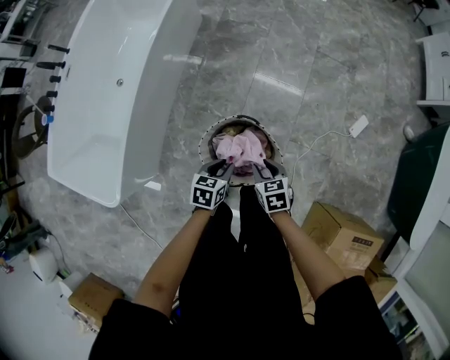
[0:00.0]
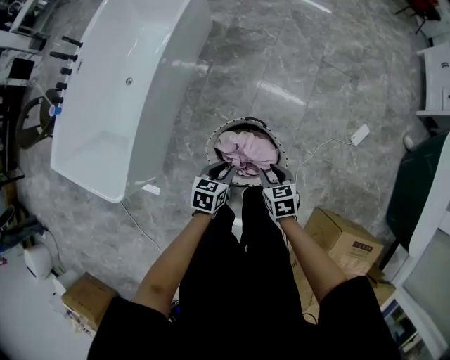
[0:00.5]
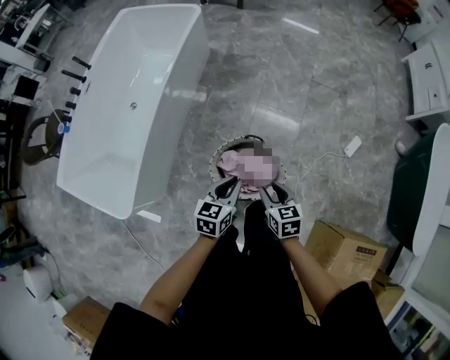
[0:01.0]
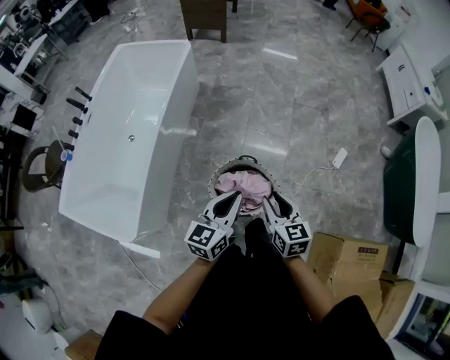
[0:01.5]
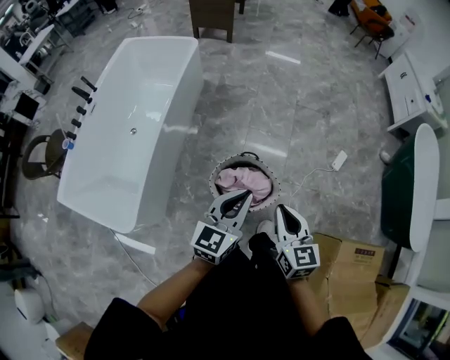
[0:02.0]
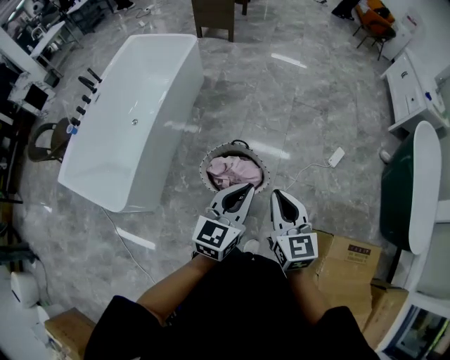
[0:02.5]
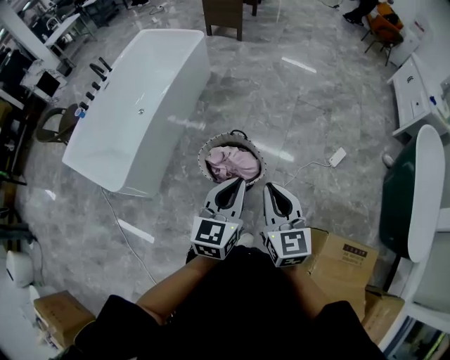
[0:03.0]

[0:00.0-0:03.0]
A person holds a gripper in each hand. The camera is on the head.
0:00.0 to 0:01.5: The right gripper travels upward and backward by about 30 cm, and turns by approximately 30 degrees. Meanwhile the left gripper heads upward, covering approximately 30 cm, tips its fingers upward by about 40 degrees, and closes.
0:01.5 to 0:03.0: The left gripper shifts about 25 cm to the right, backward and upward; the right gripper moves backward, to the right and upward, approximately 25 cm, and closes up.

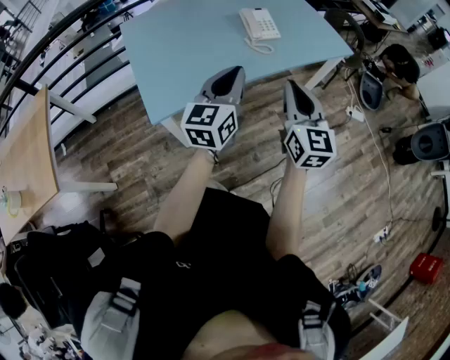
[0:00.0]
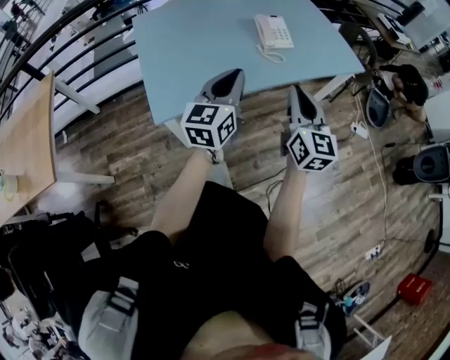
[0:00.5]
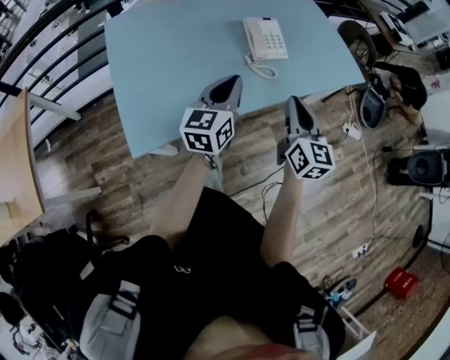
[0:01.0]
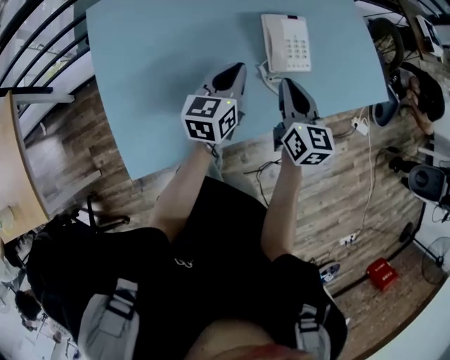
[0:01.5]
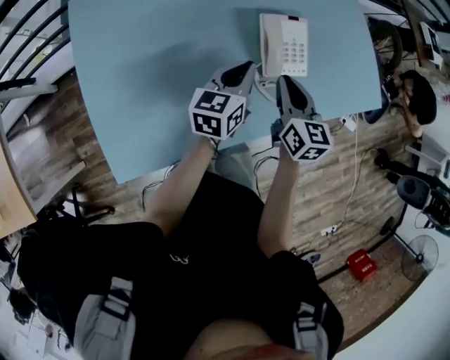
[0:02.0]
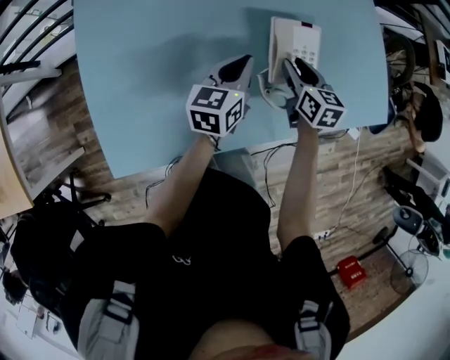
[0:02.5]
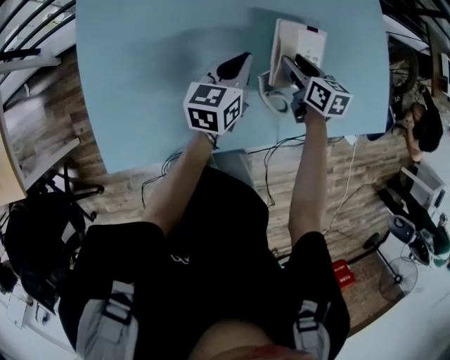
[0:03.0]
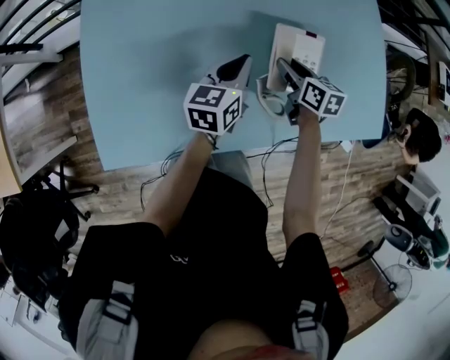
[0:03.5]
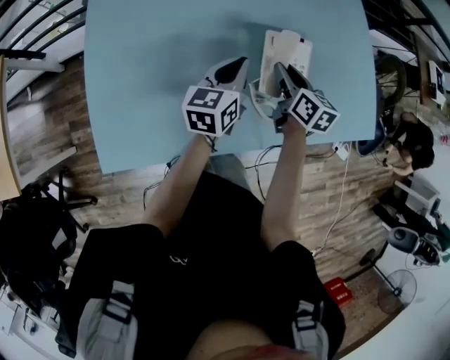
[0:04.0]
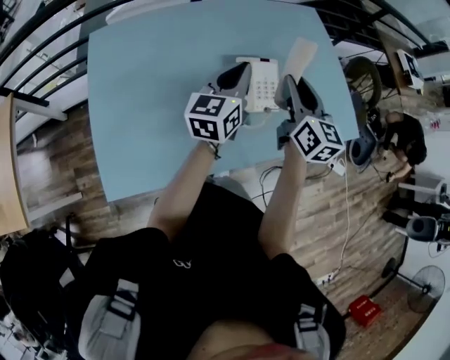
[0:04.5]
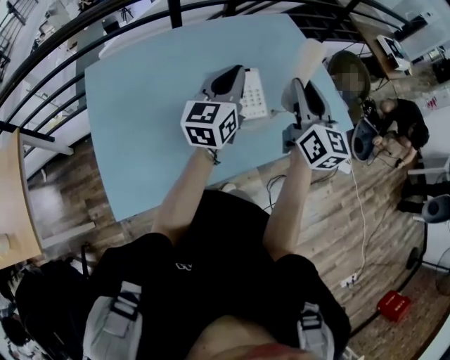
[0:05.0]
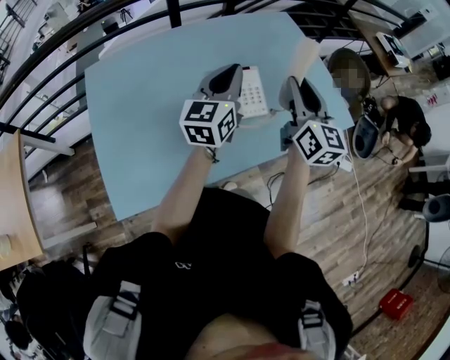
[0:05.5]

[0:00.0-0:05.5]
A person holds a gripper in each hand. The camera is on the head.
0:00.0 to 0:02.0: The two grippers travel together, forward, roughly 40 cm. Both grippers travel together downward, some 20 cm. The left gripper rotates roughly 30 degrees. Meanwhile the right gripper swivels approximately 30 degrees.
0:02.0 to 0:03.5: The right gripper shifts approximately 15 cm forward and downward, rotates approximately 30 degrees, and opens up, while the left gripper changes place by some 5 cm.
0:03.5 to 0:05.5: Both grippers travel together upward, about 25 cm. The right gripper tilts its fingers roughly 40 degrees upward, while the left gripper swivels approximately 30 degrees.

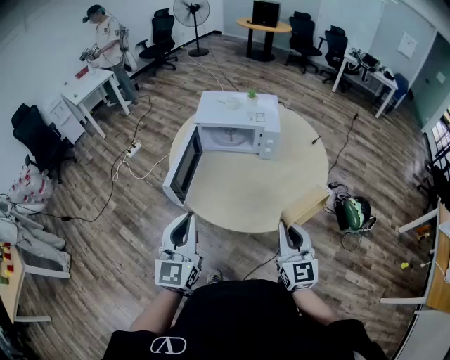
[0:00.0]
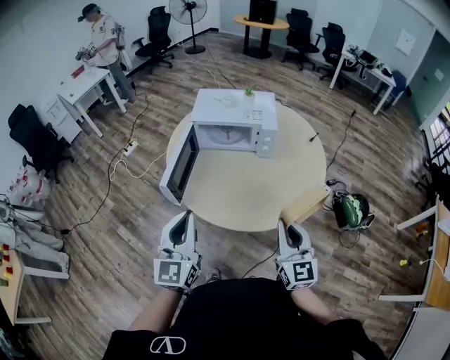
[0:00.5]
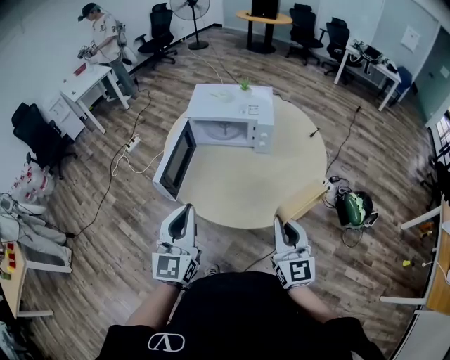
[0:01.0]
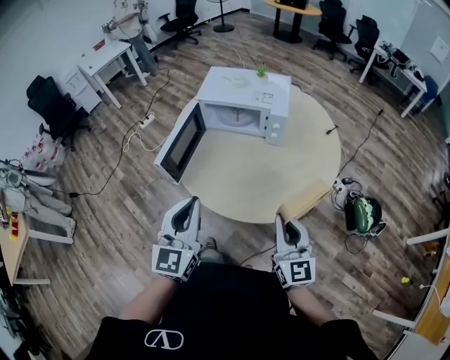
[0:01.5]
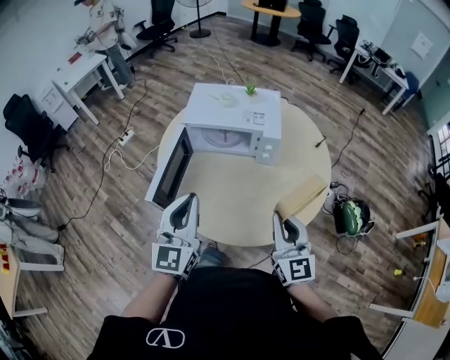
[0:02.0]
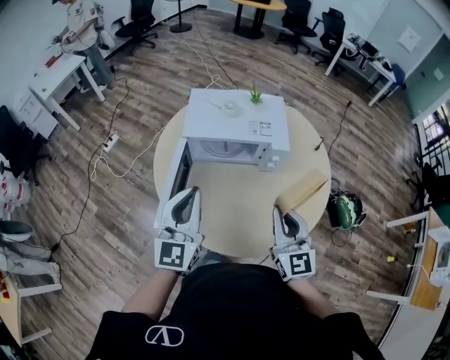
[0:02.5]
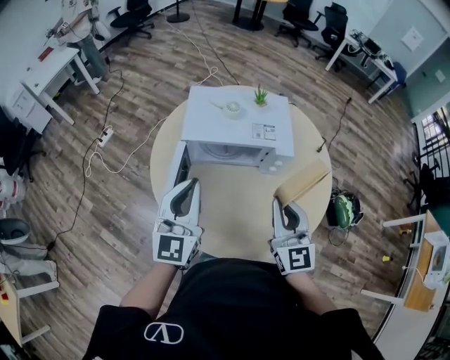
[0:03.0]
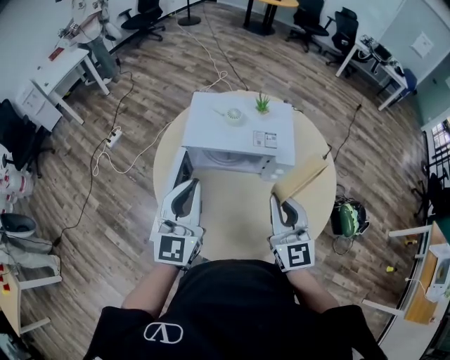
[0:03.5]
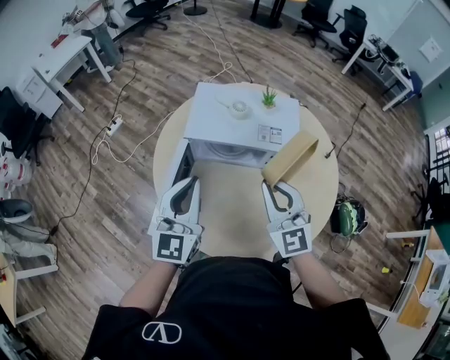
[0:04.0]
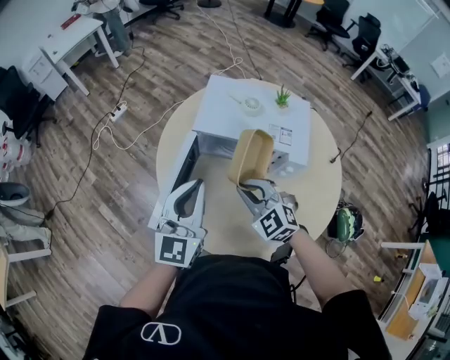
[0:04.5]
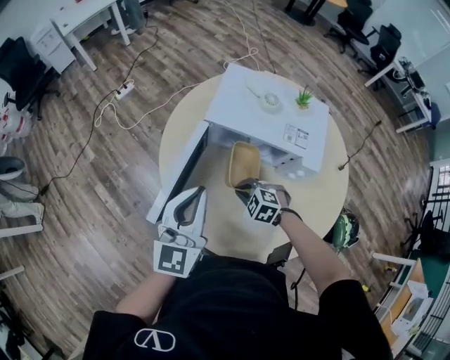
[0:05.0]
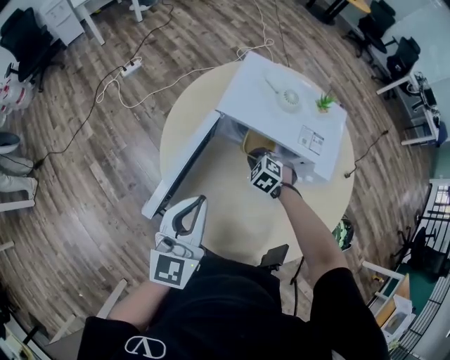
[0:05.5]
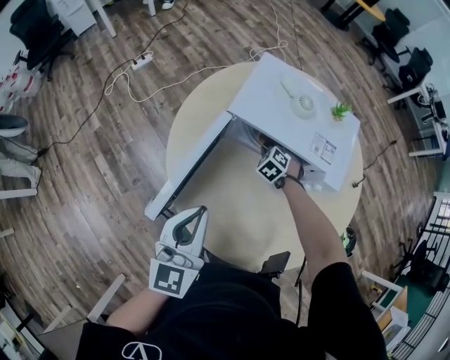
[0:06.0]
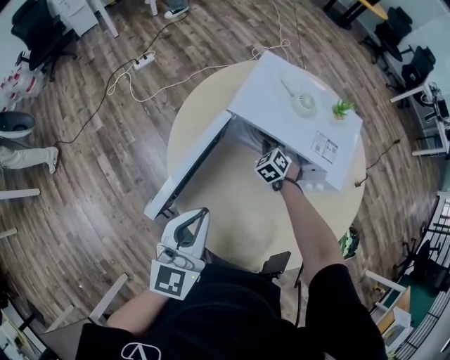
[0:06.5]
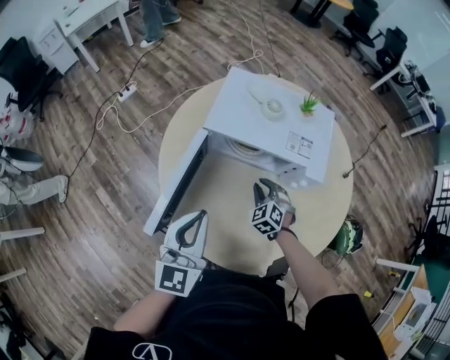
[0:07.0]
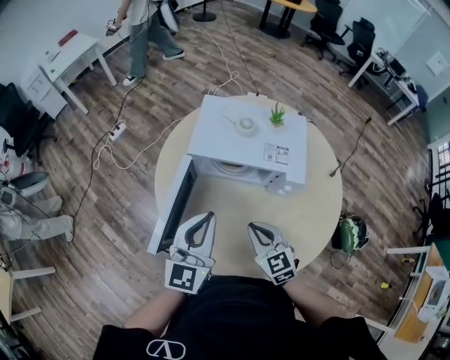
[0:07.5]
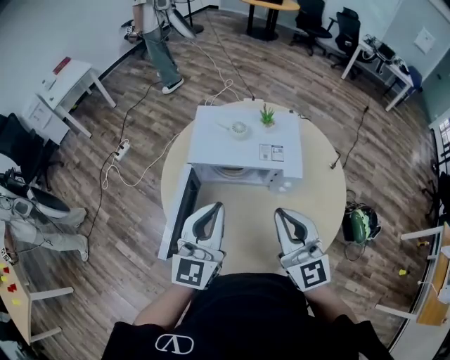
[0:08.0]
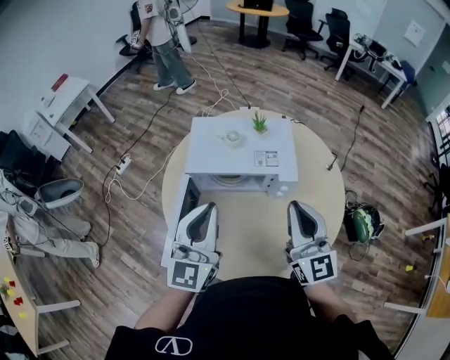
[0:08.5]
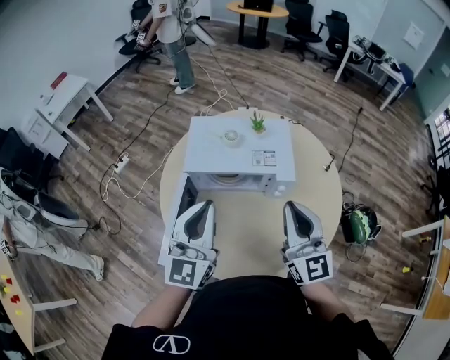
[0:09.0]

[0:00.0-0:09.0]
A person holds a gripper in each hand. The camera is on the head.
0:00.0 to 0:02.0: The grippers both shift forward by roughly 15 cm.
0:02.0 to 0:04.5: The left gripper travels forward by about 15 cm, while the right gripper moves forward, to the left and downward, roughly 30 cm, and angles its fingers downward, by about 30 degrees.
0:04.5 to 0:07.0: The right gripper shifts about 20 cm downward, and turns by approximately 30 degrees, while the left gripper heads downward, covering approximately 5 cm.
0:07.0 to 0:09.0: The right gripper travels upward by roughly 35 cm, and tips its fingers upward by some 50 degrees. Meanwhile the left gripper is displaced upward and to the right by about 15 cm, and swivels about 20 degrees.

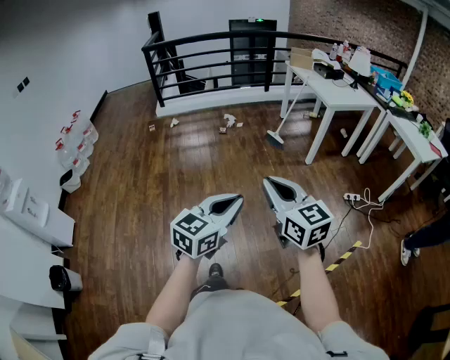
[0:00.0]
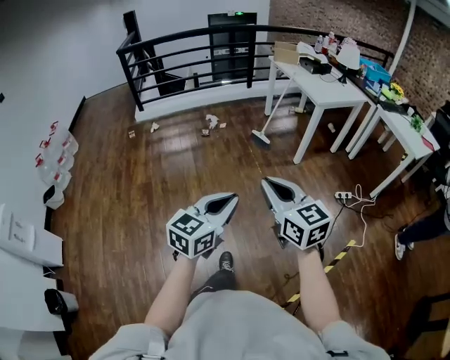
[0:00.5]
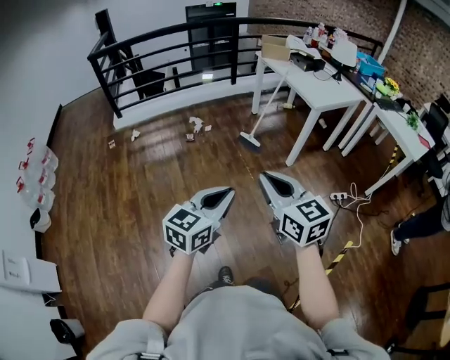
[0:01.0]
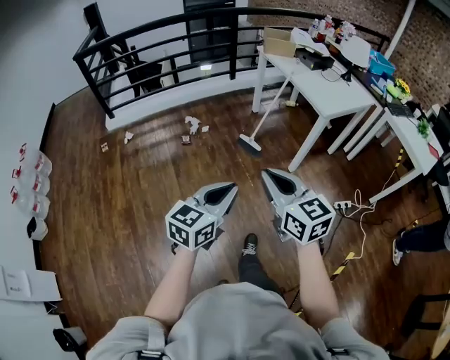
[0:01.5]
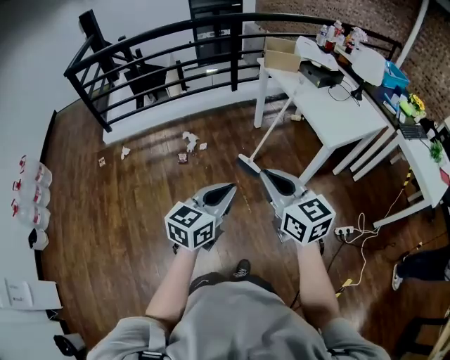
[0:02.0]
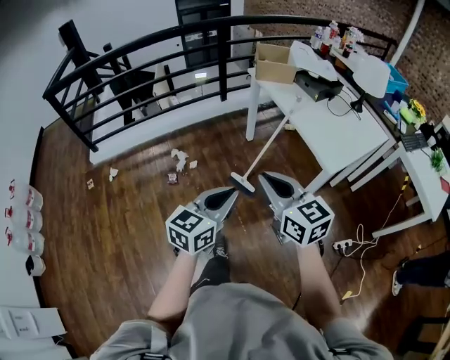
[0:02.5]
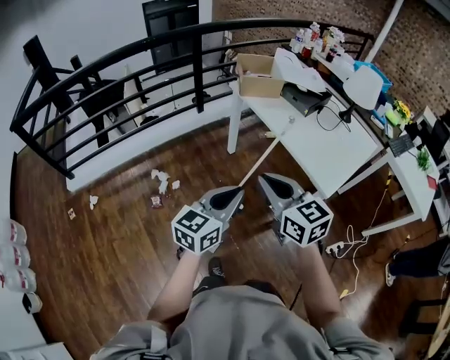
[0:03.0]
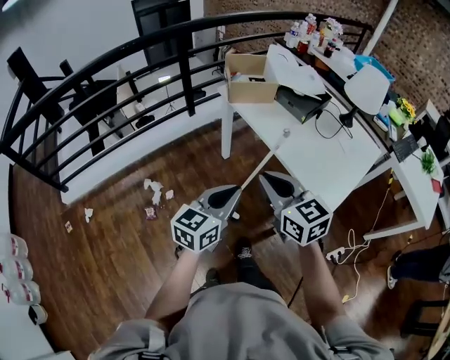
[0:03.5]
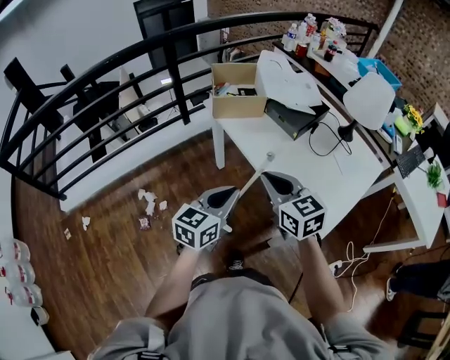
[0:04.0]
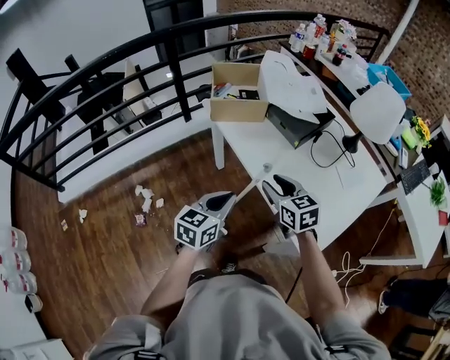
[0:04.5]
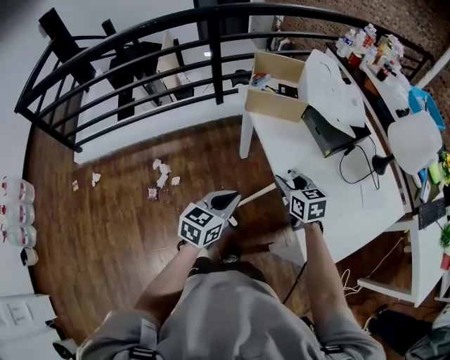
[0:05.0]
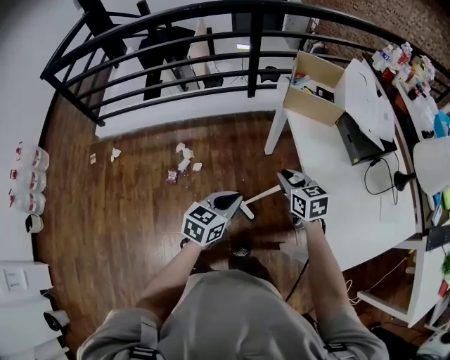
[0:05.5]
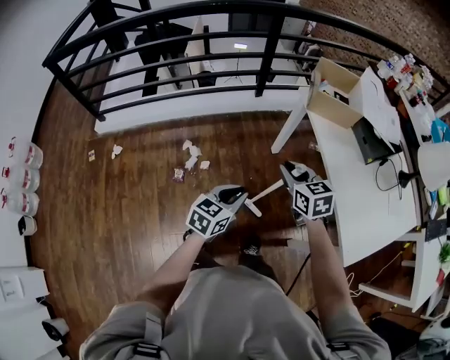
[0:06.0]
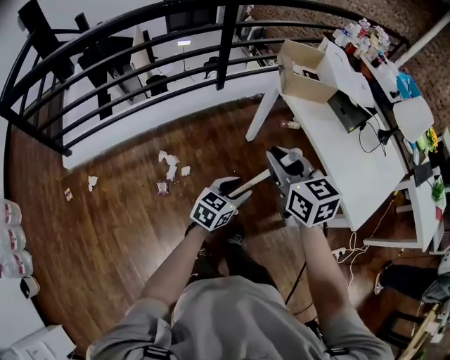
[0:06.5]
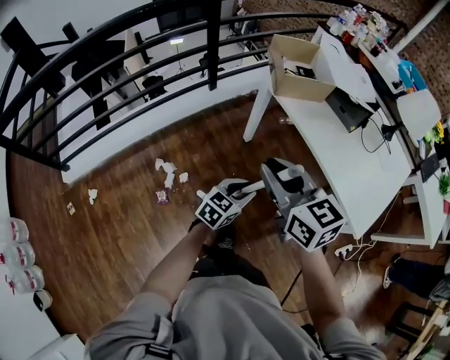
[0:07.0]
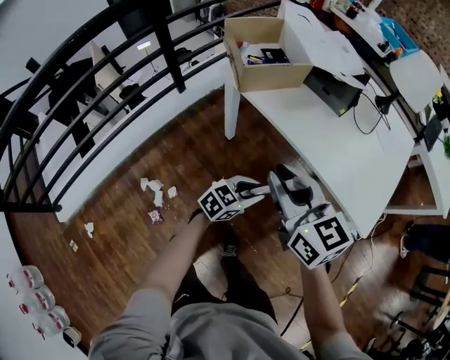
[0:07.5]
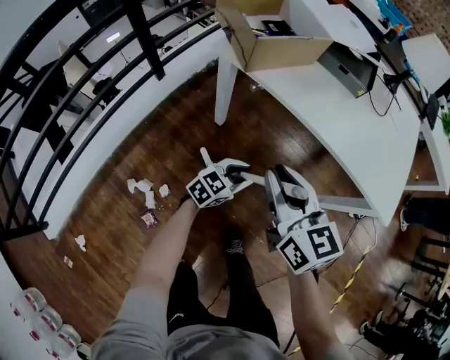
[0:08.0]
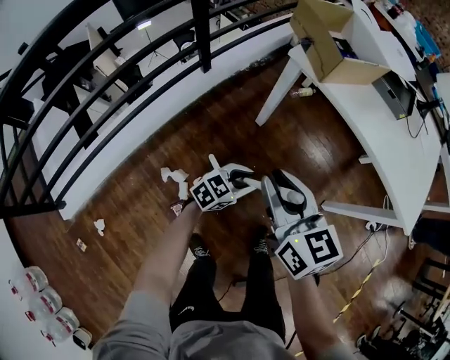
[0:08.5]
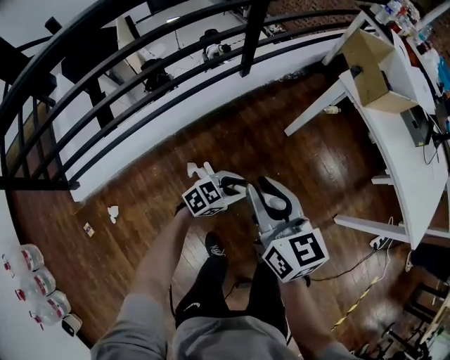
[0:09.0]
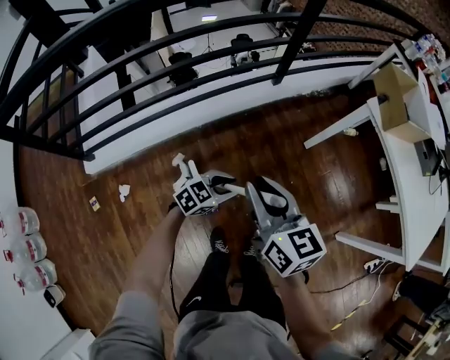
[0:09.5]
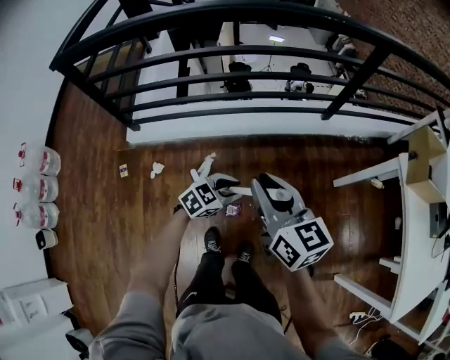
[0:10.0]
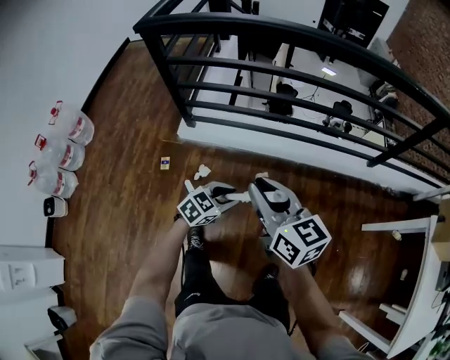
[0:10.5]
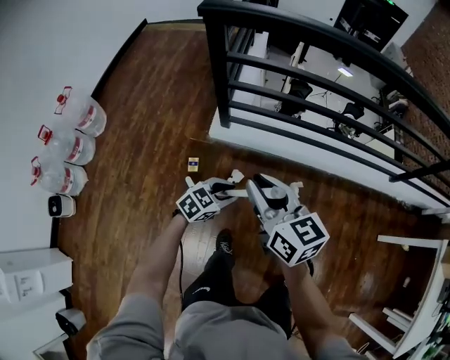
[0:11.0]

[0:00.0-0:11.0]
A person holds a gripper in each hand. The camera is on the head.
0:00.0 to 0:02.0: The two grippers travel together, forward, roughly 70 cm.
0:02.0 to 0:03.5: Both grippers are carried forward, roughly 50 cm.
0:03.5 to 0:05.5: The right gripper shifts approximately 25 cm downward and forward, rotates some 30 degrees, and opens, then closes once more. Meanwhile the left gripper shifts roughly 15 cm downward and forward, and swivels about 30 degrees.
0:05.5 to 0:07.5: The left gripper moves downward, some 10 cm, rotates roughly 60 degrees, and opens. The right gripper moves upward, approximately 10 cm, and changes its angle by roughly 40 degrees.
0:07.5 to 0:09.0: The pair of grippers is taken to the left and backward, about 40 cm.
0:09.0 to 0:11.0: Both grippers are carried roughly 80 cm. The right gripper turns by roughly 50 degrees, while the left gripper changes its angle by approximately 50 degrees.
